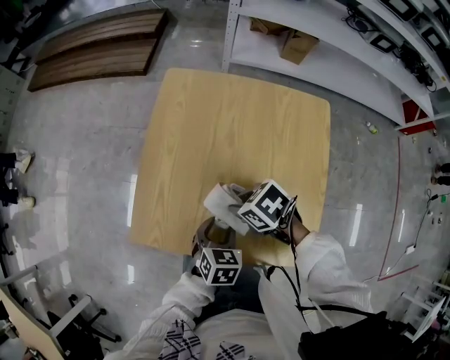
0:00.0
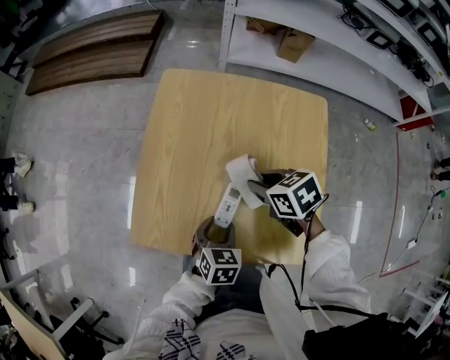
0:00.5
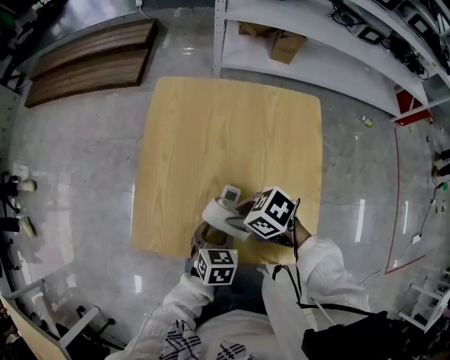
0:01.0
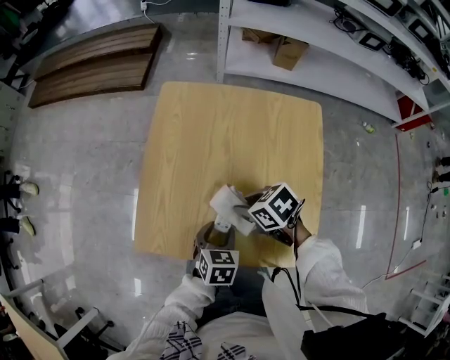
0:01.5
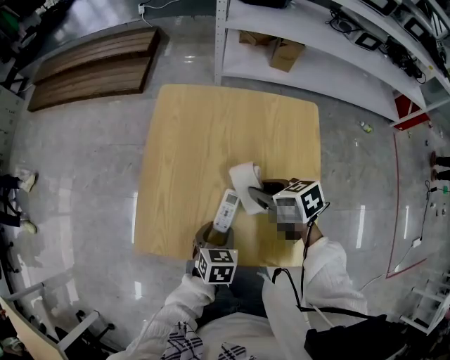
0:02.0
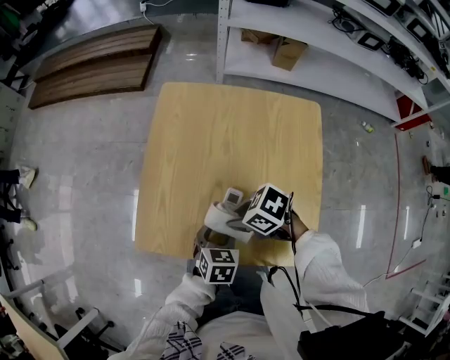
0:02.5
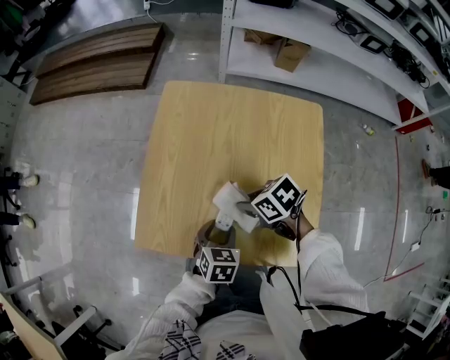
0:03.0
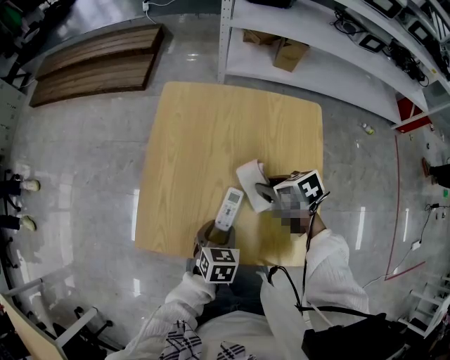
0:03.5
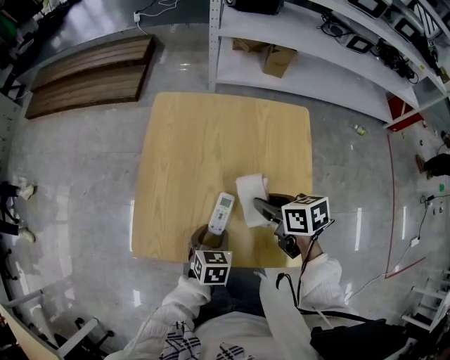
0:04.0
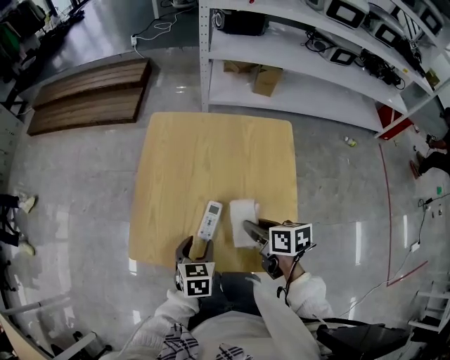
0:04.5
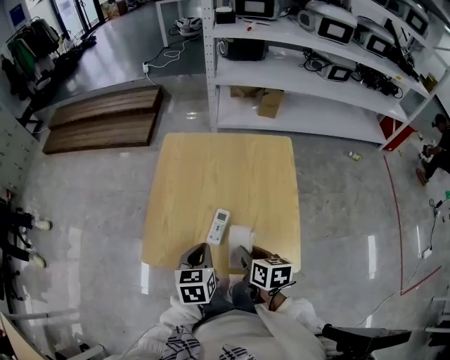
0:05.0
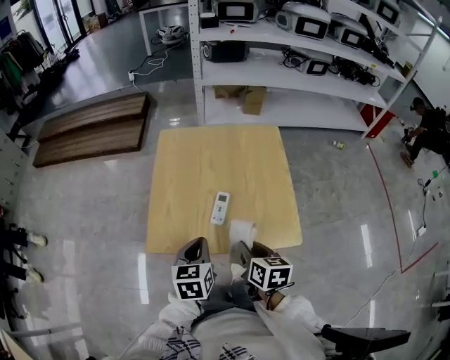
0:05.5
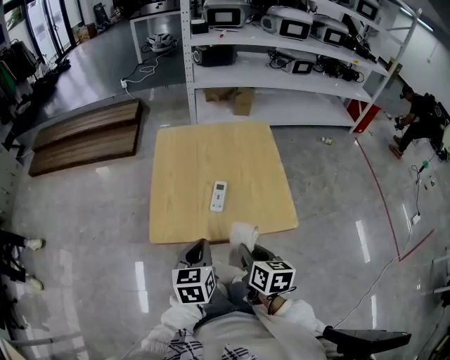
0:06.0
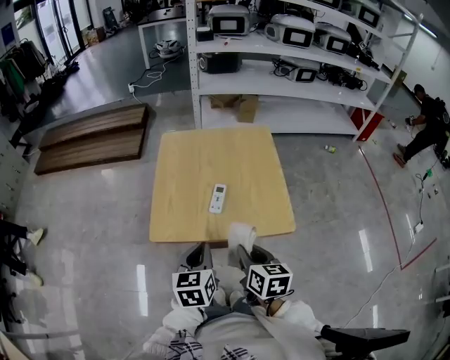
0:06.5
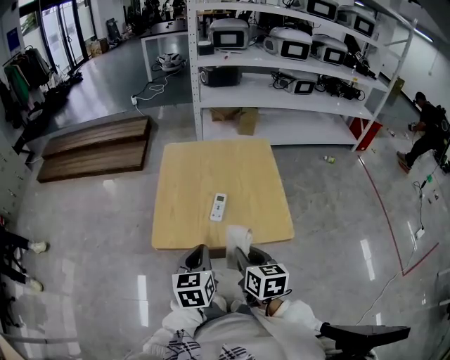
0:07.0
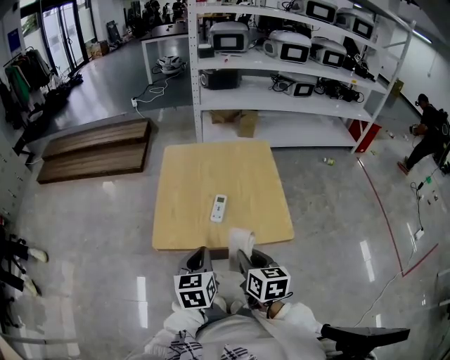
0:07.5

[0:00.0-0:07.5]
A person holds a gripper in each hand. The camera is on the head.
0:00.0 to 0:02.0: The right gripper moves left and right over roughly 10 cm, changing direction 2 times, and changes its angle by some 30 degrees.
0:04.0 to 0:05.5: The left gripper shifts roughly 15 cm upward, to the left and backward, and closes its fingers; the right gripper shifts about 20 cm backward and to the left, and swivels approximately 30 degrees.
0:05.5 to 0:07.5: Both grippers travel together backward and upward, approximately 10 cm.

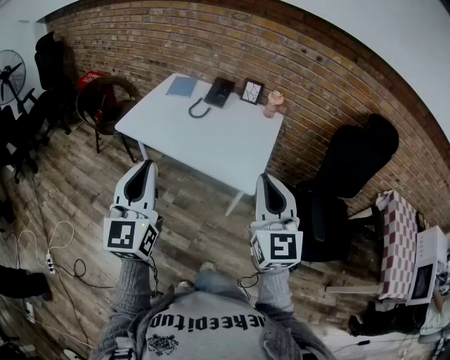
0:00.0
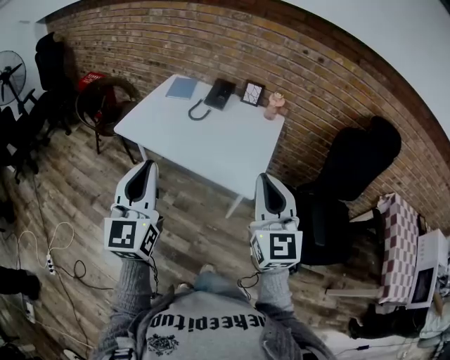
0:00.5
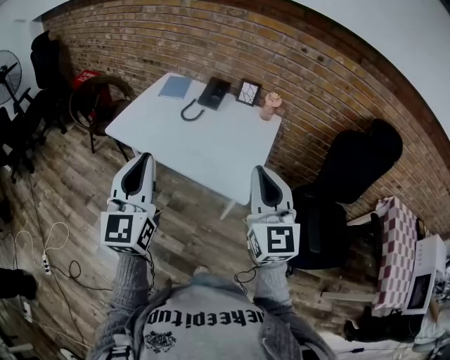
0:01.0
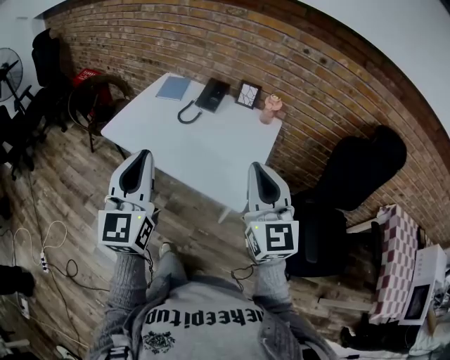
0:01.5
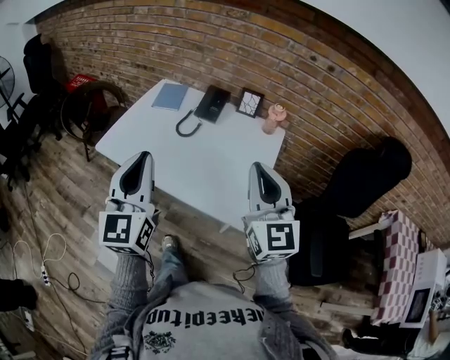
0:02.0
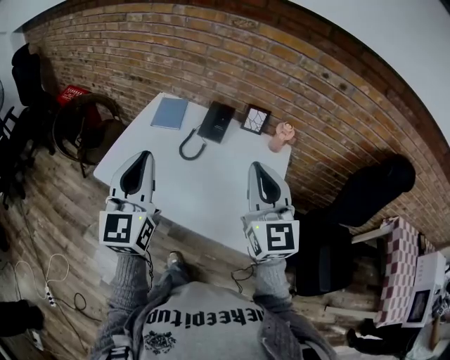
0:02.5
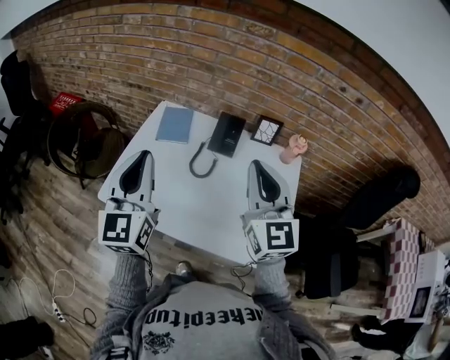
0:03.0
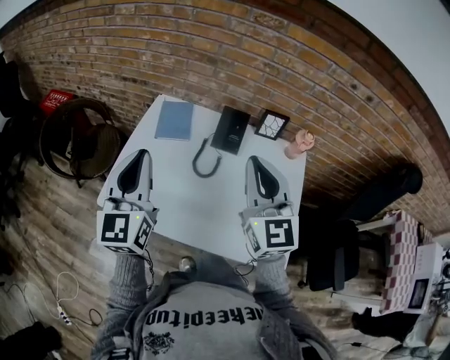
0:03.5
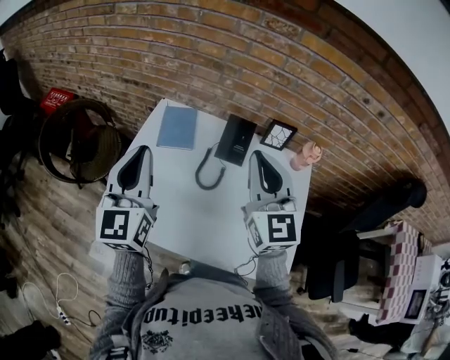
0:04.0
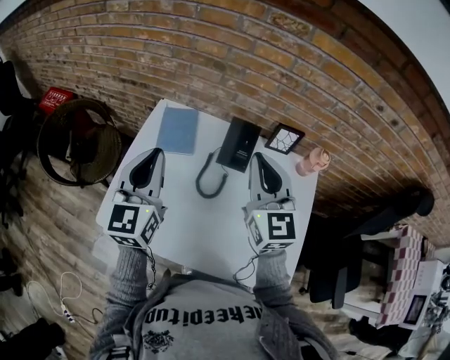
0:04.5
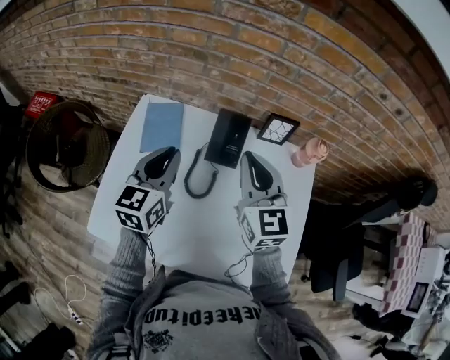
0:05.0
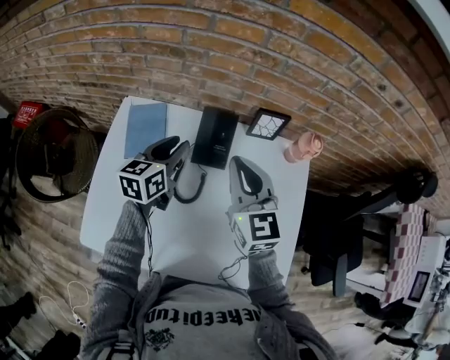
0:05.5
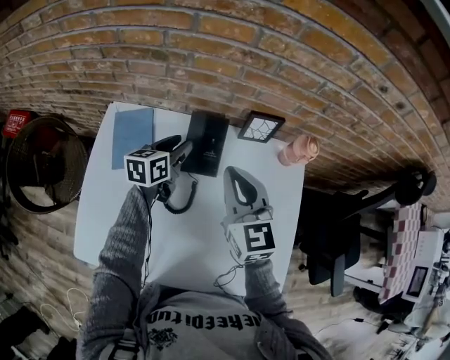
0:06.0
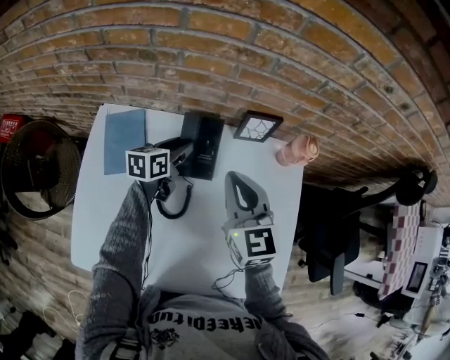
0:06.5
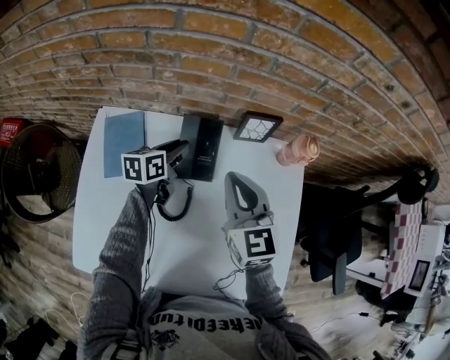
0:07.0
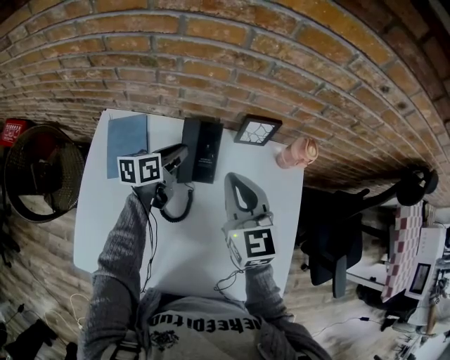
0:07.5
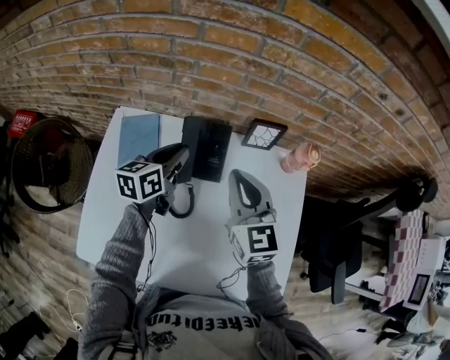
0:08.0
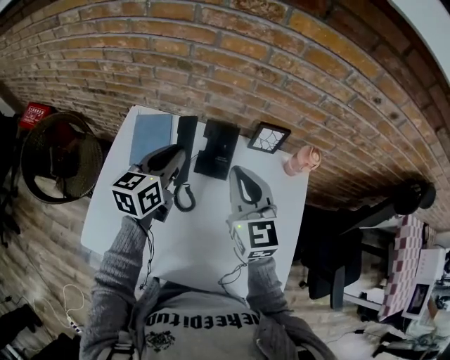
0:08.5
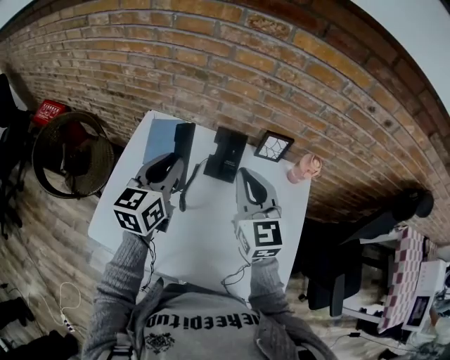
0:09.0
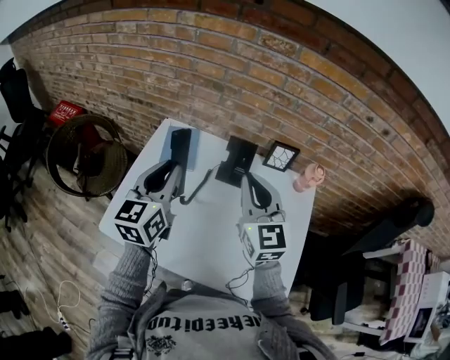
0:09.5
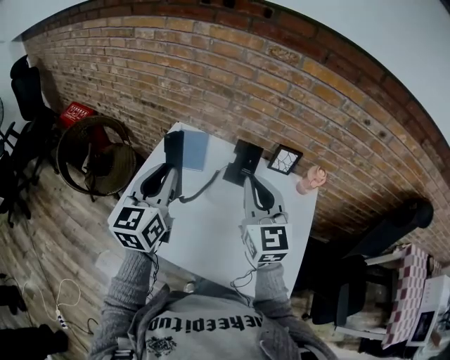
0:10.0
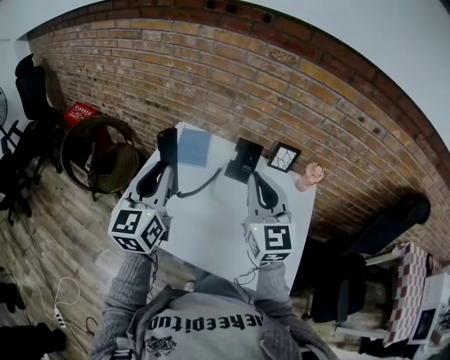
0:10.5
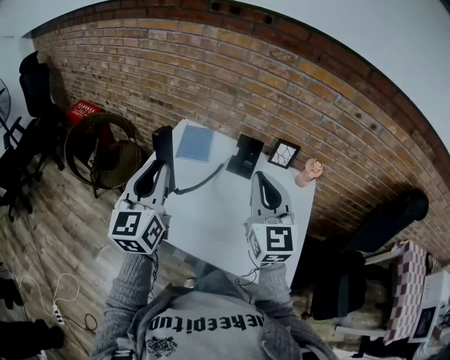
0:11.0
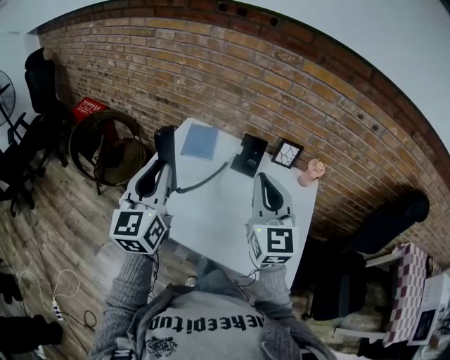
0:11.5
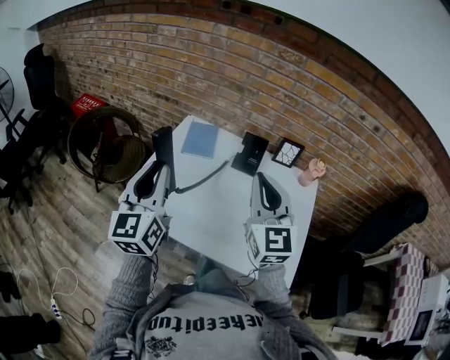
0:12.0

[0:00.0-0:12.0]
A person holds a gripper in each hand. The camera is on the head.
0:00.0 to 0:02.0: Both grippers travel together forward, about 20 cm.
0:02.0 to 0:04.0: Both grippers move forward and to the left, approximately 35 cm.
0:04.0 to 0:06.0: The right gripper moves downward and forward, approximately 20 cm. The left gripper shifts approximately 40 cm downward, forward and to the right, tilts its fingers roughly 30 degrees downward, and opens its fingers.
0:06.0 to 0:08.0: The left gripper moves upward, some 5 cm.
0:08.0 to 0:10.0: The left gripper travels backward, upward and to the left by approximately 35 cm, and rotates approximately 40 degrees, while the right gripper shifts roughly 20 cm backward, upward and to the left.
0:10.0 to 0:12.0: The right gripper heads backward, covering roughly 10 cm. The left gripper shifts about 10 cm backward and to the left.

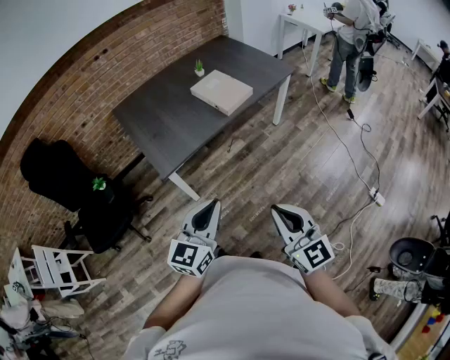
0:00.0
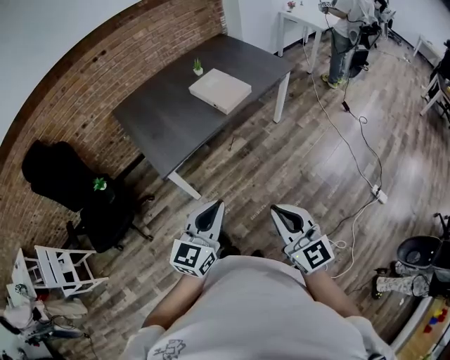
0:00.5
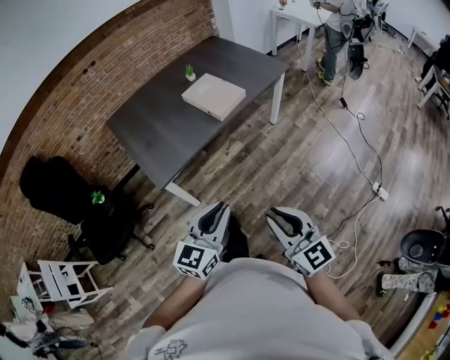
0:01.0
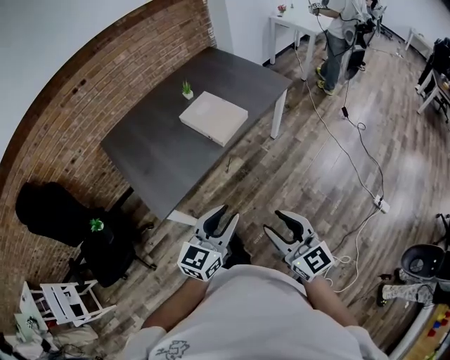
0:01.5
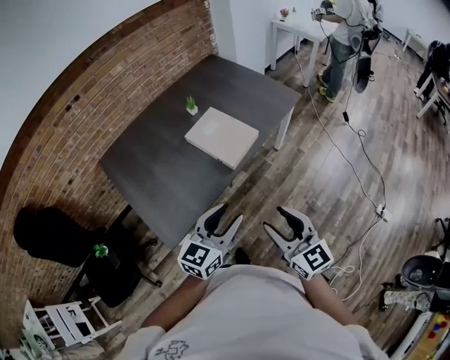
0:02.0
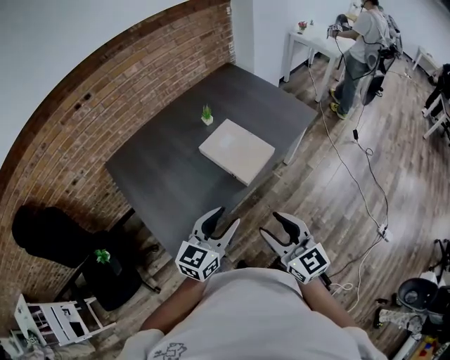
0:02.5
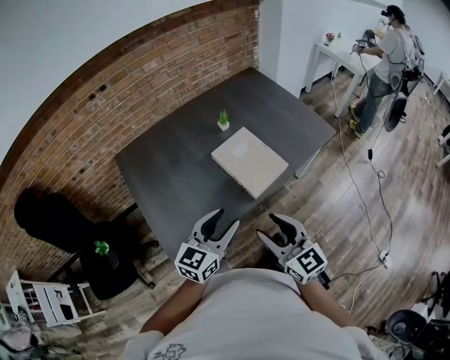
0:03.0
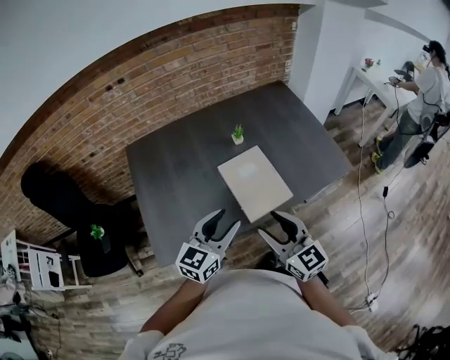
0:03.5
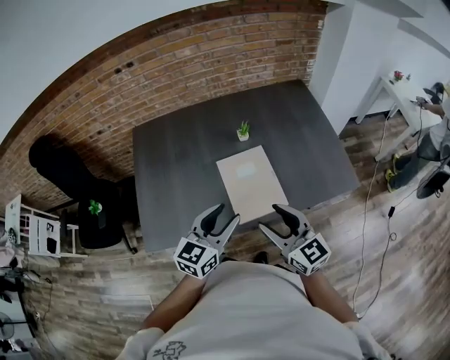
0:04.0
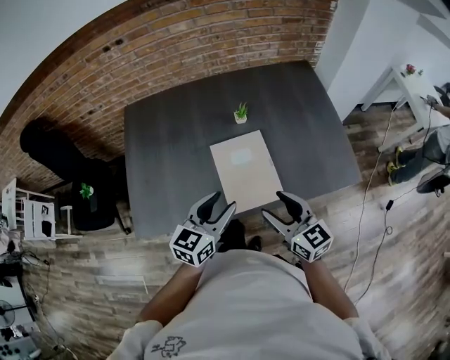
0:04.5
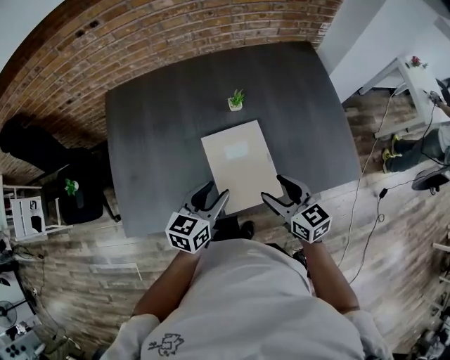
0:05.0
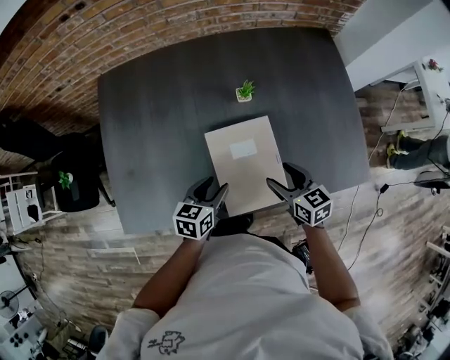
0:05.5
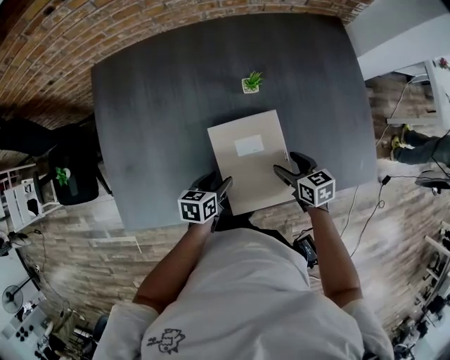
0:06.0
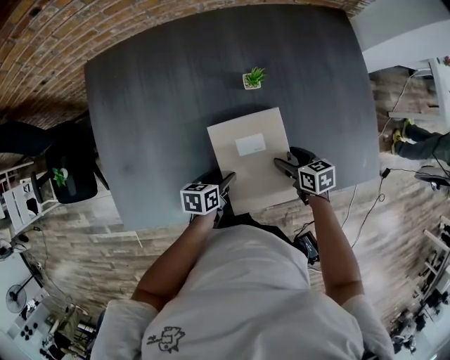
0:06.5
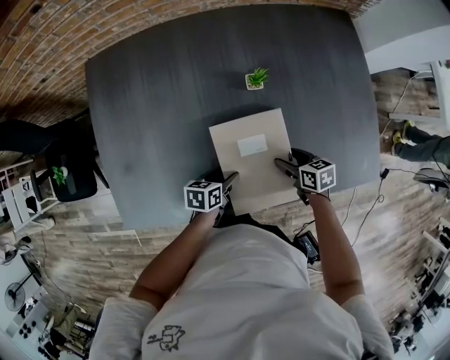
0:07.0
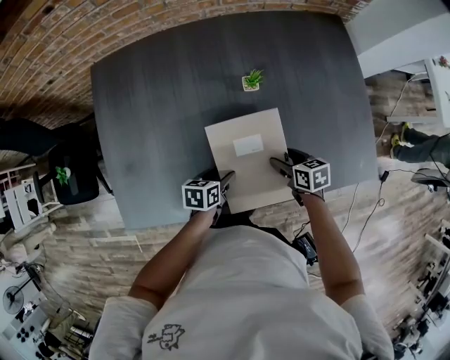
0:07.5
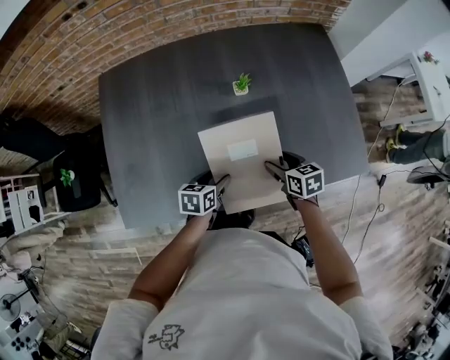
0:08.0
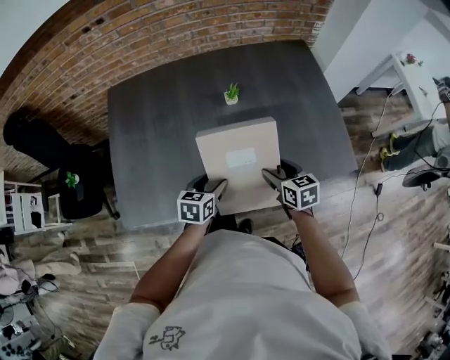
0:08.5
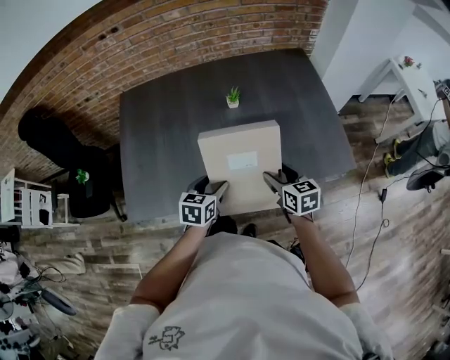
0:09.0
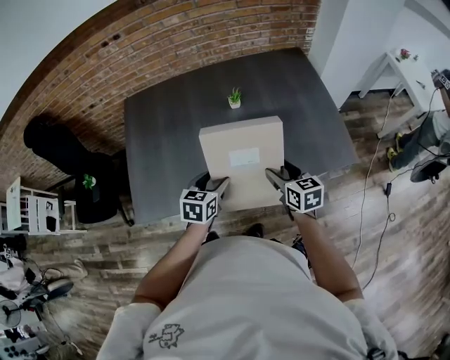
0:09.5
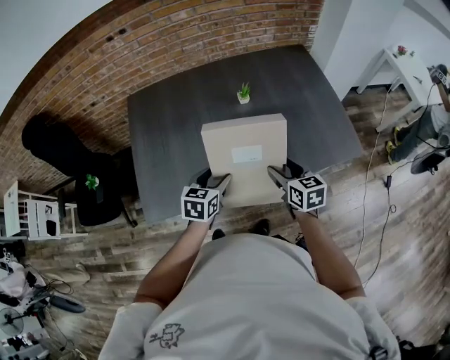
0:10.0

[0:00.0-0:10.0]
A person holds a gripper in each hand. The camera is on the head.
0:00.0 to 0:02.0: Both grippers travel together forward, roughly 30 cm. The right gripper opens. Meanwhile the left gripper opens.
0:02.0 to 0:04.0: The left gripper moves some 25 cm, and swivels some 30 degrees. The right gripper moves about 35 cm, and turns by about 40 degrees.
0:04.0 to 0:06.0: Both grippers travel together downward and forward, some 35 cm. The left gripper tilts its fingers approximately 30 degrees downward. Meanwhile the right gripper angles its fingers downward, by roughly 40 degrees.
0:06.0 to 0:08.0: The grippers make only small movements.
0:08.0 to 0:10.0: The grippers both shift upward and backward by about 20 cm. The left gripper rotates about 20 degrees. The right gripper swivels roughly 20 degrees.
